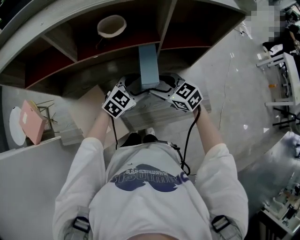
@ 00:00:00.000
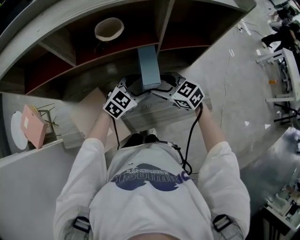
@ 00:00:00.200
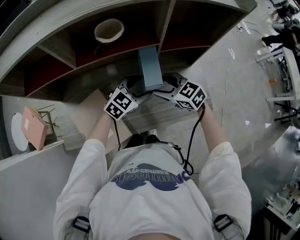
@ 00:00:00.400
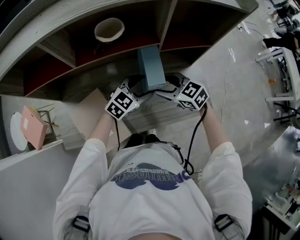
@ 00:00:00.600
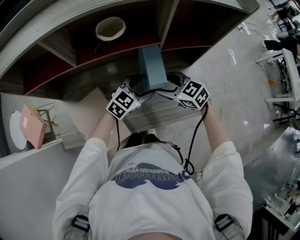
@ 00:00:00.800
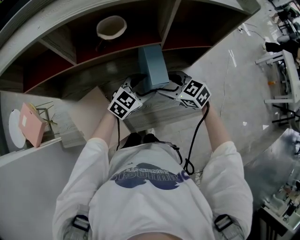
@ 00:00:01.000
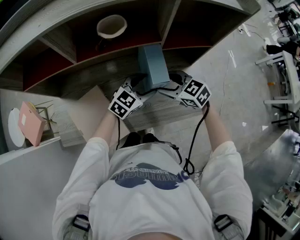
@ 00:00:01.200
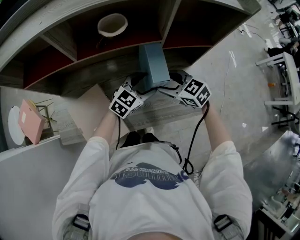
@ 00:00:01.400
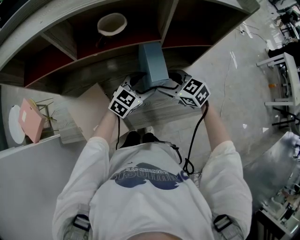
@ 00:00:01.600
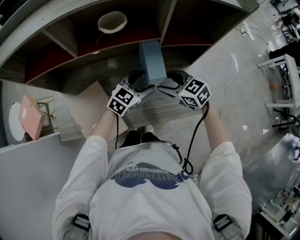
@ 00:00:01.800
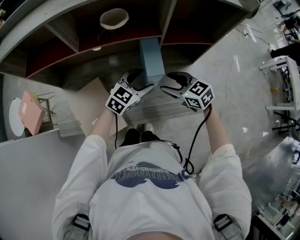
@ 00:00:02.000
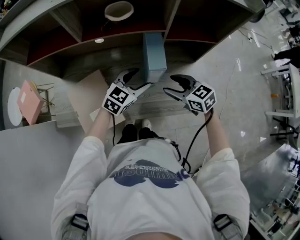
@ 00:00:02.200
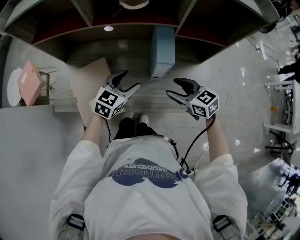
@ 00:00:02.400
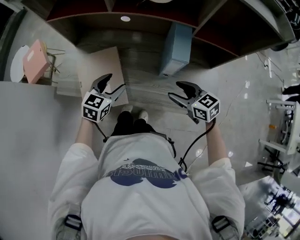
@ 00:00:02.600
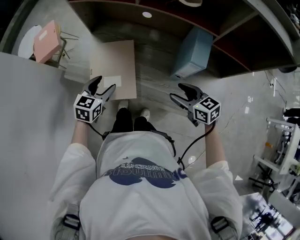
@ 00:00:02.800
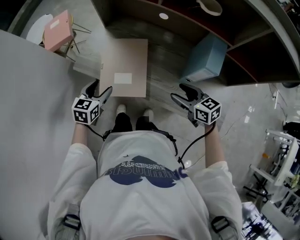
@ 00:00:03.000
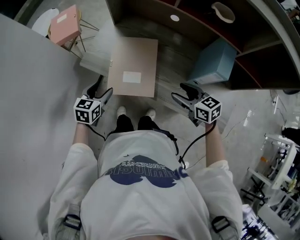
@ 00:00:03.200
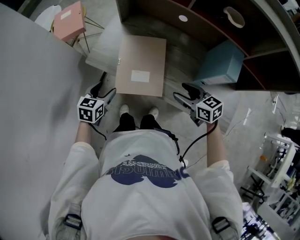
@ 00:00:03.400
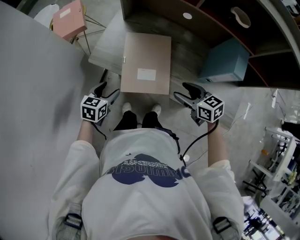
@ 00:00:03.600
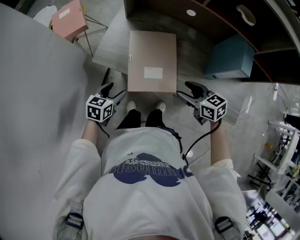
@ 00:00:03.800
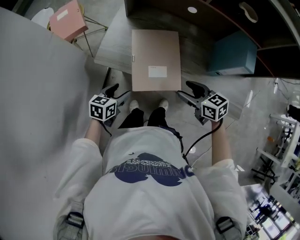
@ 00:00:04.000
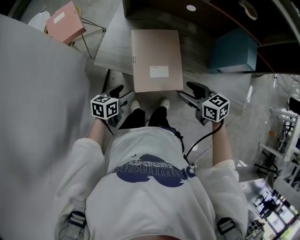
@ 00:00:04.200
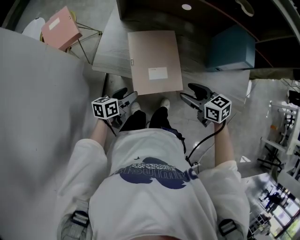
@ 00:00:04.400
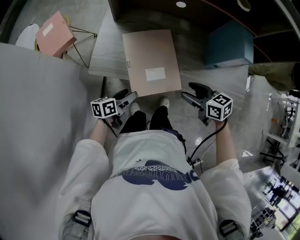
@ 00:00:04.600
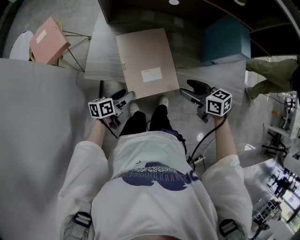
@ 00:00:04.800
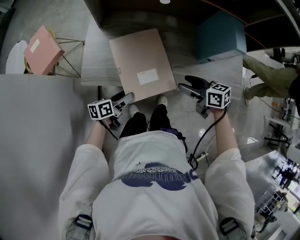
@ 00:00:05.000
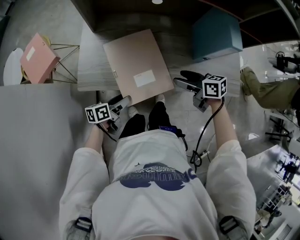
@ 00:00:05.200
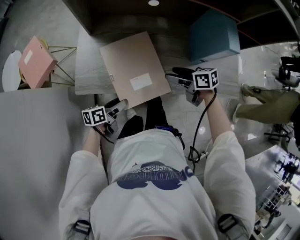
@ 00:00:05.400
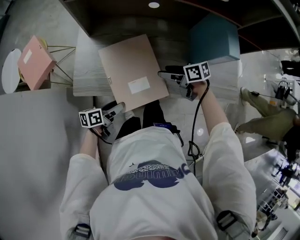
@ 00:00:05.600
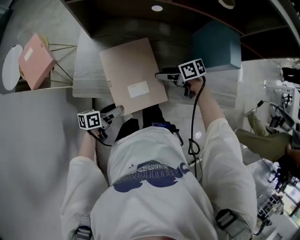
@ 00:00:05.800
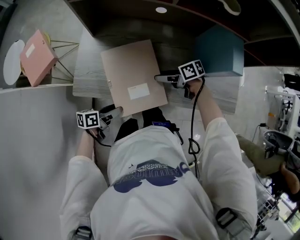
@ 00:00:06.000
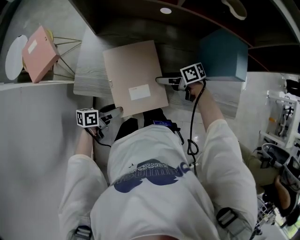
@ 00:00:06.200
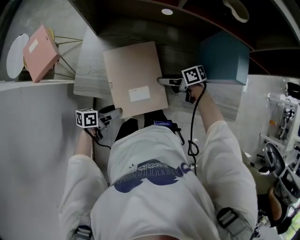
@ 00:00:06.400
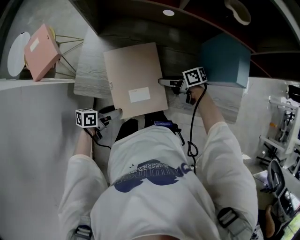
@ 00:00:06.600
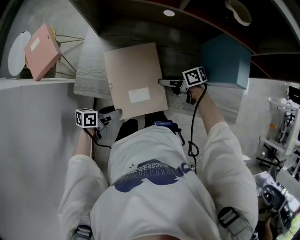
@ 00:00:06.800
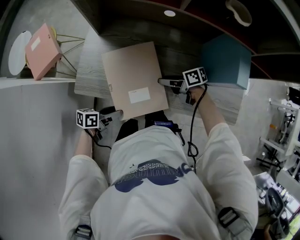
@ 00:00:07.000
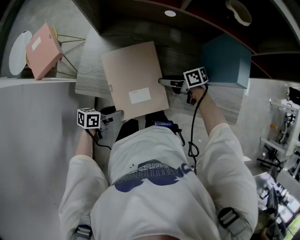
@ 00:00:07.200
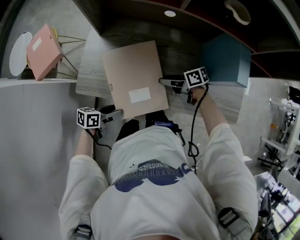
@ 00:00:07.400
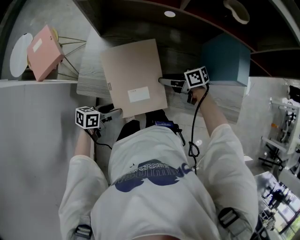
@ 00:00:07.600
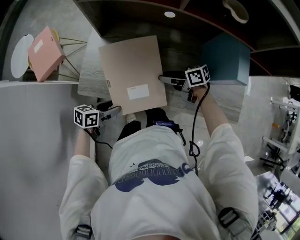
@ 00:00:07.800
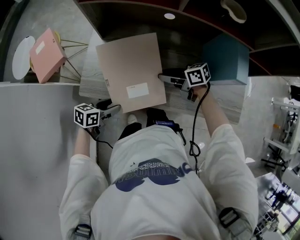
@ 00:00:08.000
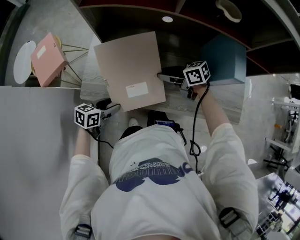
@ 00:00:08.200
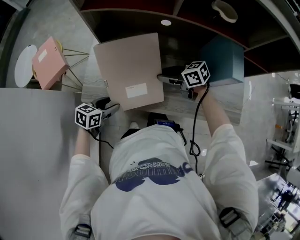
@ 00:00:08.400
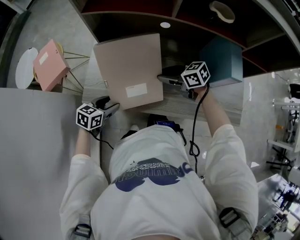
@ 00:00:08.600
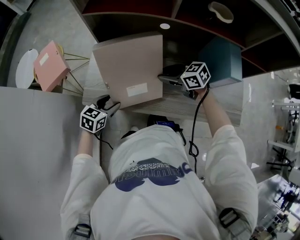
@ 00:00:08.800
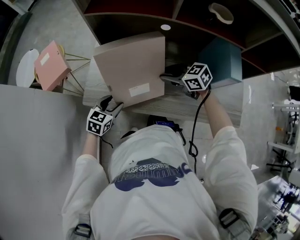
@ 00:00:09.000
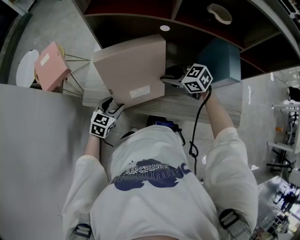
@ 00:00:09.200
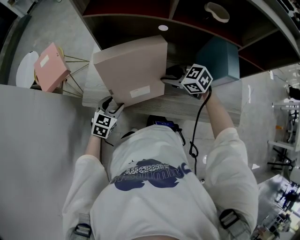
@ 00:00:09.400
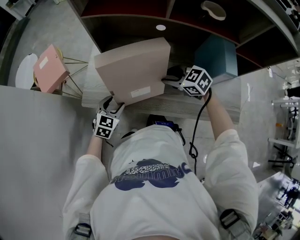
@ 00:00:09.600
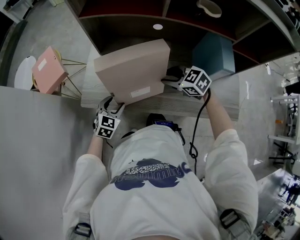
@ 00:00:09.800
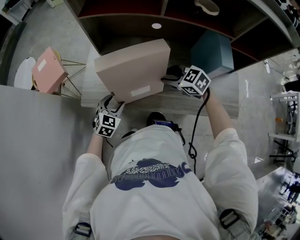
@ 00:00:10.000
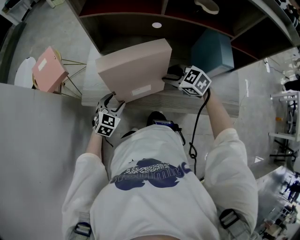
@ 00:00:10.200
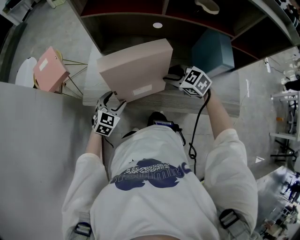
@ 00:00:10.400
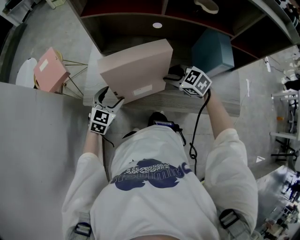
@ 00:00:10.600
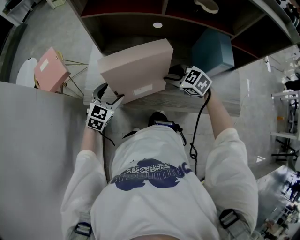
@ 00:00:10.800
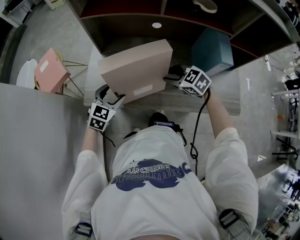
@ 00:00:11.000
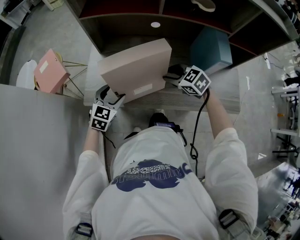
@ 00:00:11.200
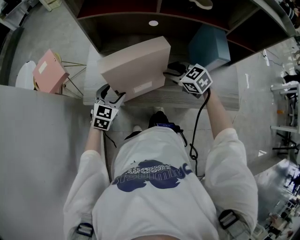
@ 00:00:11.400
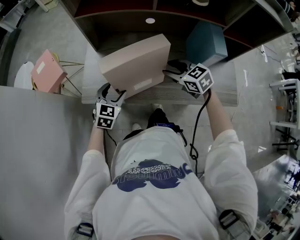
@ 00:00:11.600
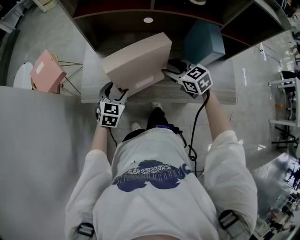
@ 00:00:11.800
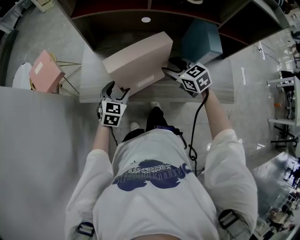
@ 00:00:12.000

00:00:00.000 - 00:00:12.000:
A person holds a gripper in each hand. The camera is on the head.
00:00:00.000 - 00:00:01.600: The grippers stay close to where they were, moving slightly.
00:00:01.600 - 00:00:03.000: The right gripper ends up some 15 cm from where it was, and changes its angle by approximately 20 degrees. The left gripper changes place by roughly 40 cm, and changes its angle by about 60 degrees.
00:00:03.000 - 00:00:04.400: The left gripper shifts some 15 cm downward and to the left, and rotates some 40 degrees, while the right gripper goes roughly 15 cm to the left.
00:00:04.400 - 00:00:06.000: The right gripper ends up roughly 20 cm from where it was, and rotates some 30 degrees.
00:00:06.000 - 00:00:07.600: The right gripper closes up.
00:00:07.600 - 00:00:09.000: The left gripper changes place by about 10 cm, and swivels about 40 degrees. Meanwhile the right gripper moves upward, some 10 cm, and rotates around the line of its fingers by about 40 degrees, counterclockwise from behind.
00:00:09.000 - 00:00:10.400: The right gripper changes its angle by some 20 degrees.
00:00:10.400 - 00:00:12.000: The right gripper shifts by about 5 cm, and changes its angle by approximately 20 degrees; the left gripper ends up approximately 5 cm from where it was.

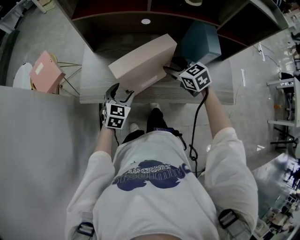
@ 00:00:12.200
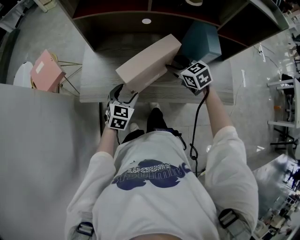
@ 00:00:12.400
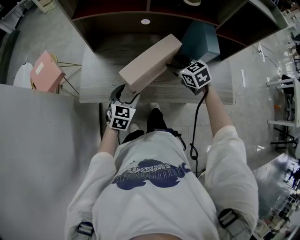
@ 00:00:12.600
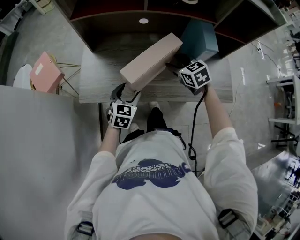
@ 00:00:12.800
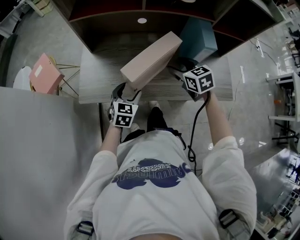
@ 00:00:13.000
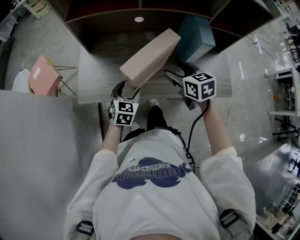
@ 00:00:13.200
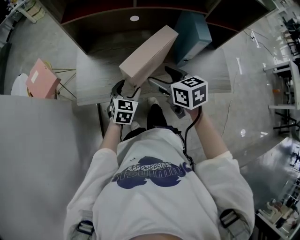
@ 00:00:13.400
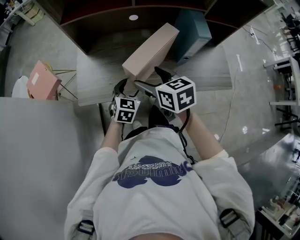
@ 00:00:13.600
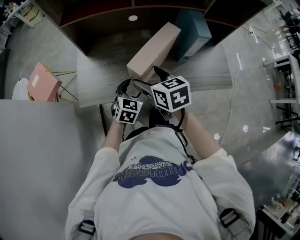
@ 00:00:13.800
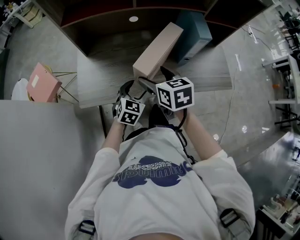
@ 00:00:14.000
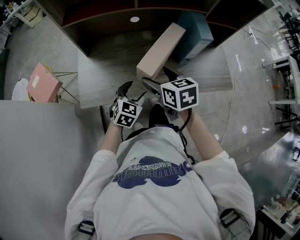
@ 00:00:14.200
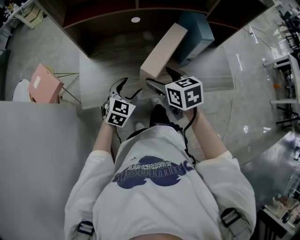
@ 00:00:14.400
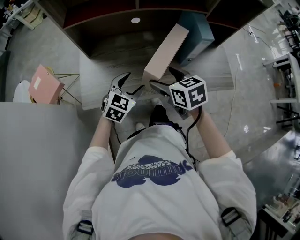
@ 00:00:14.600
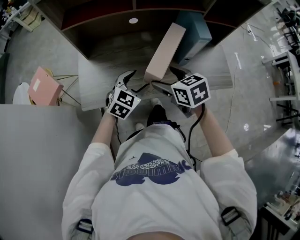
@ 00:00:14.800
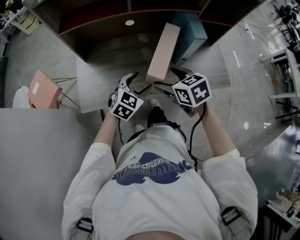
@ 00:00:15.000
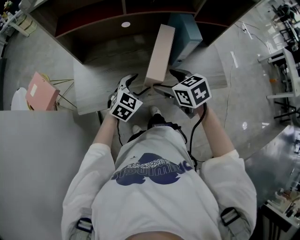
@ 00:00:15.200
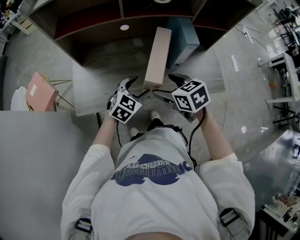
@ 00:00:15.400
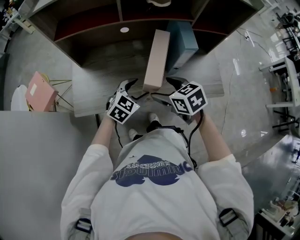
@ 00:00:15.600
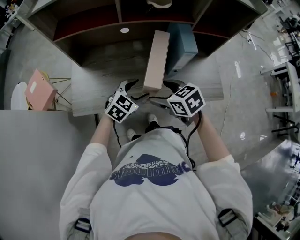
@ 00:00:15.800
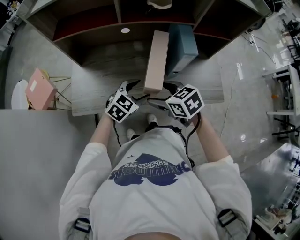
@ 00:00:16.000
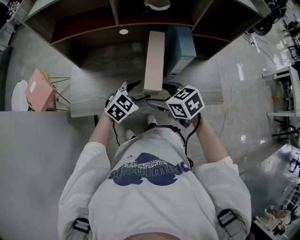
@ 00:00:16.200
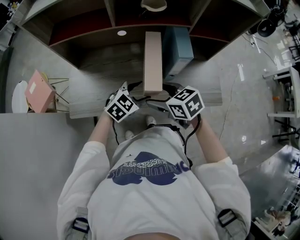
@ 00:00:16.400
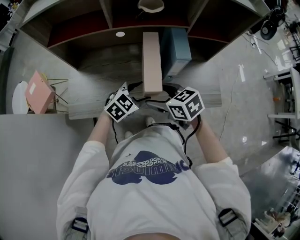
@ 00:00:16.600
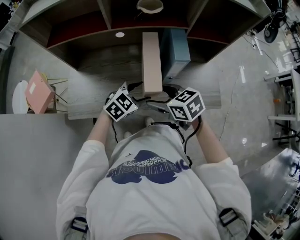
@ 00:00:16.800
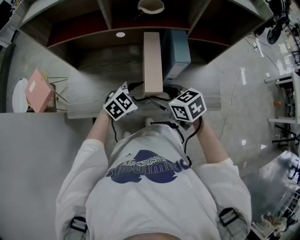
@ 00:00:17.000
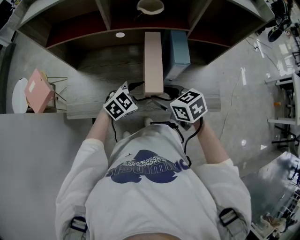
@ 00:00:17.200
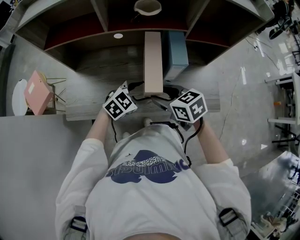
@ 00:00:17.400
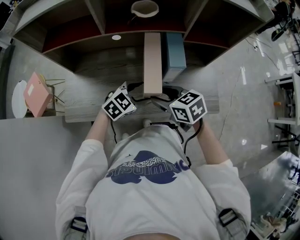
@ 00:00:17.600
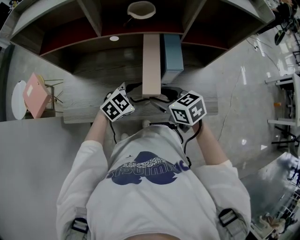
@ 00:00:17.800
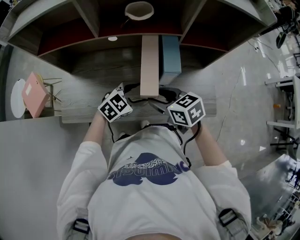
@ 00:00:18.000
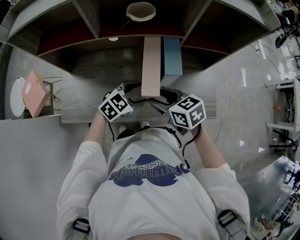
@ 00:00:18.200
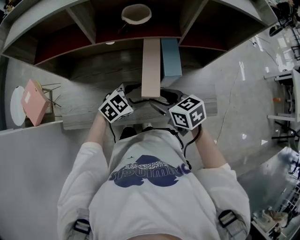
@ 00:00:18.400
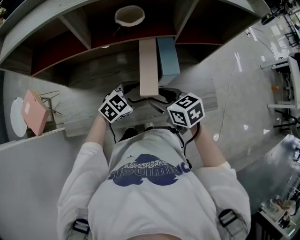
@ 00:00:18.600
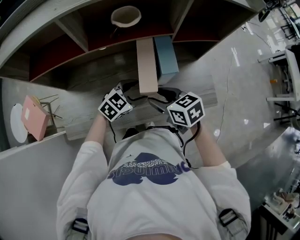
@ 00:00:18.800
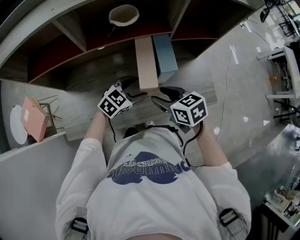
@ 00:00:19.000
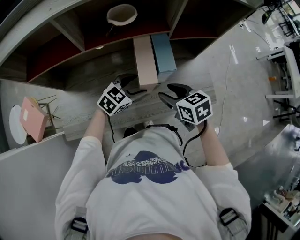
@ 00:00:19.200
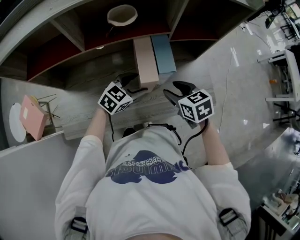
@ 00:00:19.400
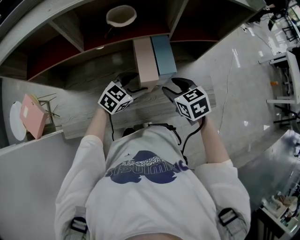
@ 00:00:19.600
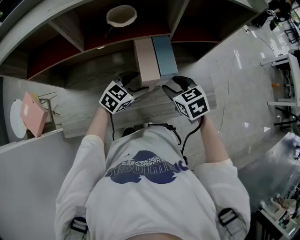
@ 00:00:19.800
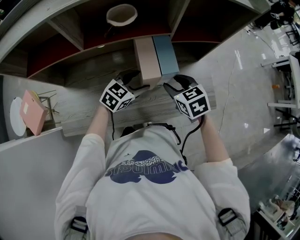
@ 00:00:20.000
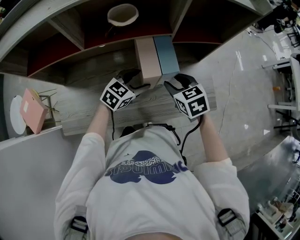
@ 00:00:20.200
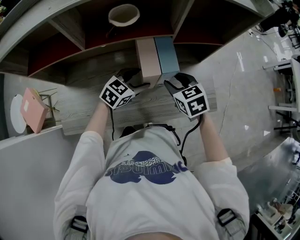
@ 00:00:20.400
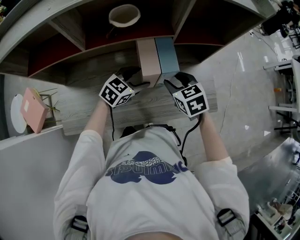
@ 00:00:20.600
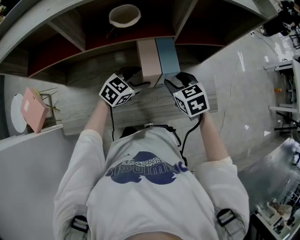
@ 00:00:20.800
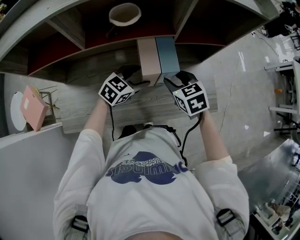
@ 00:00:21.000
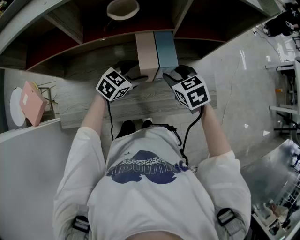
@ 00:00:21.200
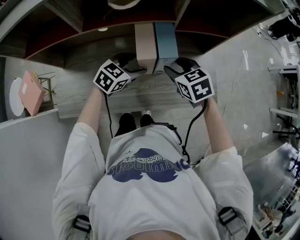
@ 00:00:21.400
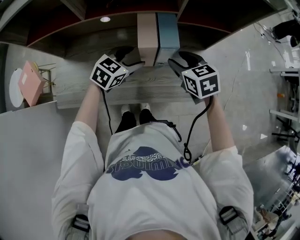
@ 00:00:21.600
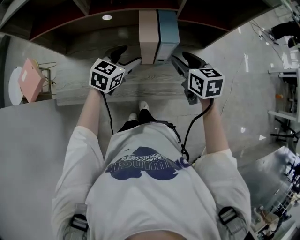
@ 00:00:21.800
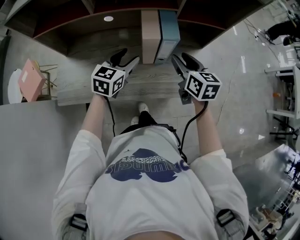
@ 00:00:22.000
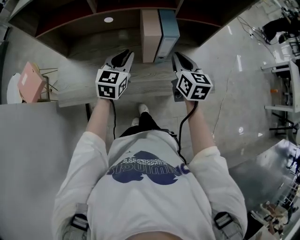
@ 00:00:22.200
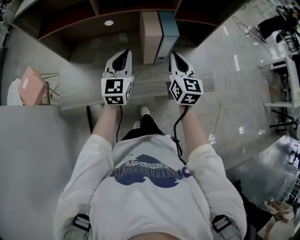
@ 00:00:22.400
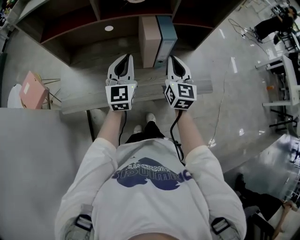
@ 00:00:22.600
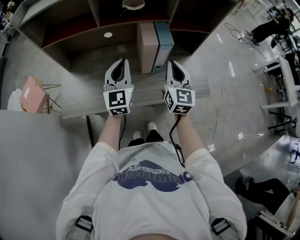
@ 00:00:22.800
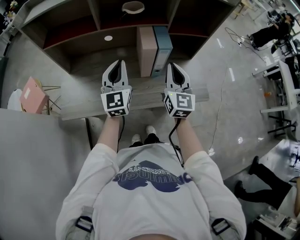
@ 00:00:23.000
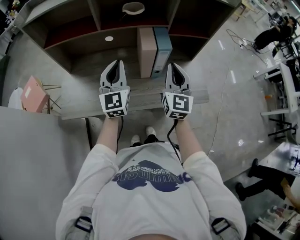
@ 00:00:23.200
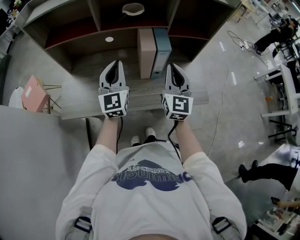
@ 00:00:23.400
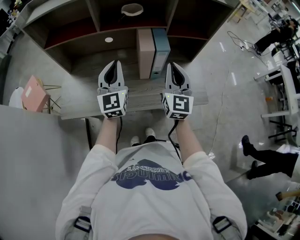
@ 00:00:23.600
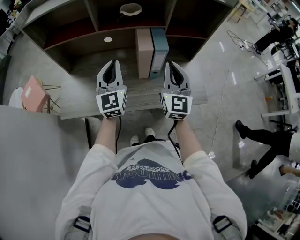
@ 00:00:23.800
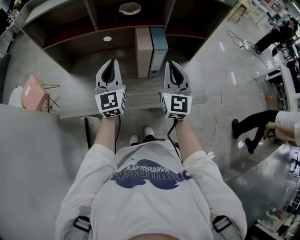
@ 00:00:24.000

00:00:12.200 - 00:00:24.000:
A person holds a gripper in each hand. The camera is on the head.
00:00:12.200 - 00:00:13.600: The left gripper heads to the right, covering roughly 5 cm; the right gripper travels backward, to the left and upward by some 15 cm, turns by approximately 30 degrees, and opens its fingers.
00:00:13.600 - 00:00:15.200: The left gripper travels upward and to the right by approximately 10 cm, and turns by about 20 degrees, while the right gripper travels to the right by about 10 cm.
00:00:15.200 - 00:00:16.600: The right gripper moves to the right, roughly 5 cm. The left gripper is displaced to the right by about 10 cm.
00:00:16.600 - 00:00:18.200: The right gripper heads forward and to the right, covering some 10 cm, and closes up, while the left gripper shifts approximately 5 cm forward.
00:00:18.200 - 00:00:19.600: The left gripper shifts about 5 cm forward, while the right gripper heads to the right and forward, covering roughly 10 cm, and rotates approximately 20 degrees.
00:00:19.600 - 00:00:21.000: The grippers move only a little.
00:00:21.000 - 00:00:22.600: The left gripper shifts some 20 cm upward, backward and to the left, angles its fingers upward, by approximately 30 degrees, and closes its fingers. Meanwhile the right gripper is displaced backward and upward by roughly 15 cm, angles its fingers upward, by approximately 40 degrees, and closes.
00:00:22.600 - 00:00:24.000: The right gripper moves upward, roughly 5 cm.
